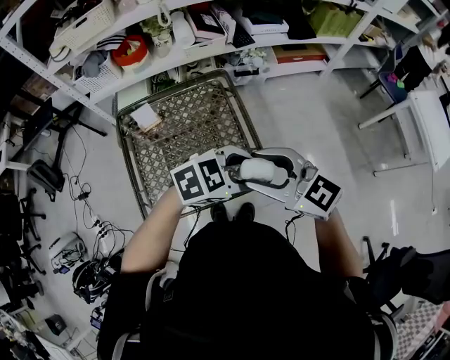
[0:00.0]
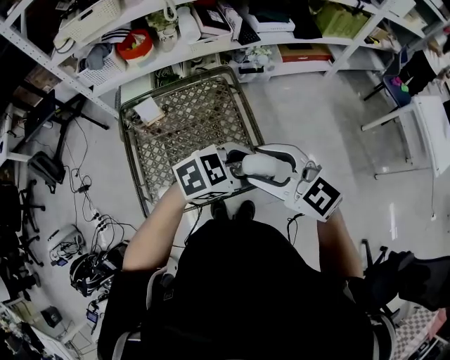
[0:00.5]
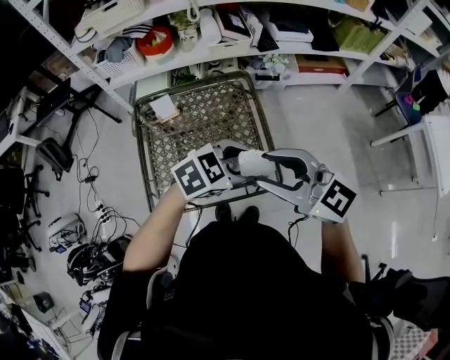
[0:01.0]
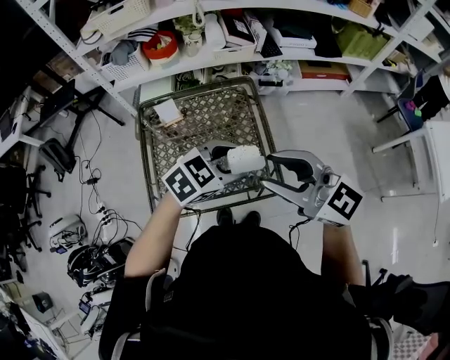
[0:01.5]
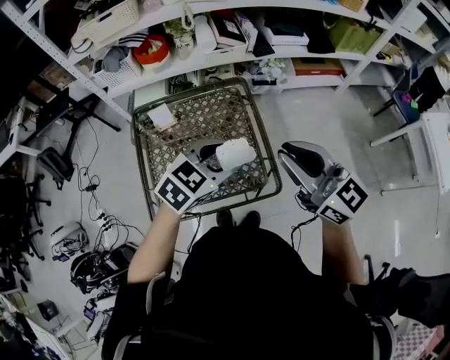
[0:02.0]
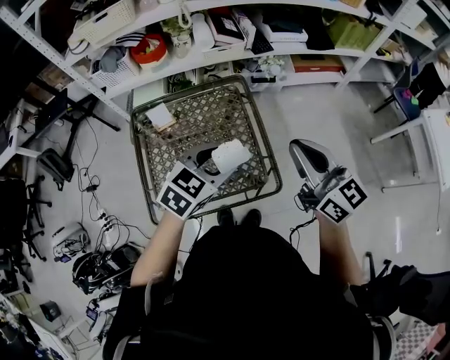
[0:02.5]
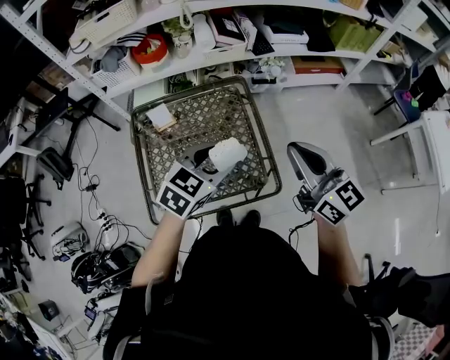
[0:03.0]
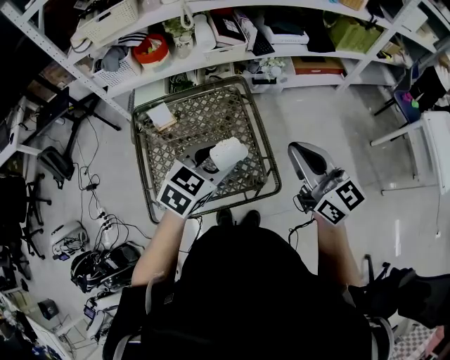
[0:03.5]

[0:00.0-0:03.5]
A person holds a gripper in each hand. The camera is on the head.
0:00.0 to 0:02.0: The right gripper changes place by roughly 10 cm, and closes. Meanwhile the left gripper moves about 10 cm, and rotates roughly 30 degrees.
0:02.0 to 0:03.5: There are only small adjustments of the grippers.

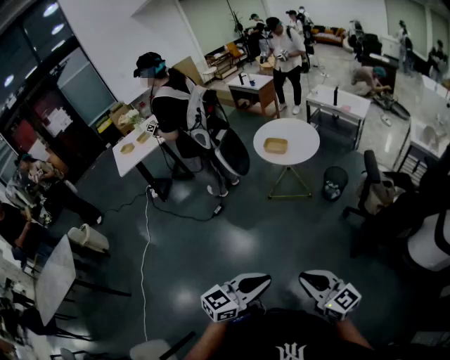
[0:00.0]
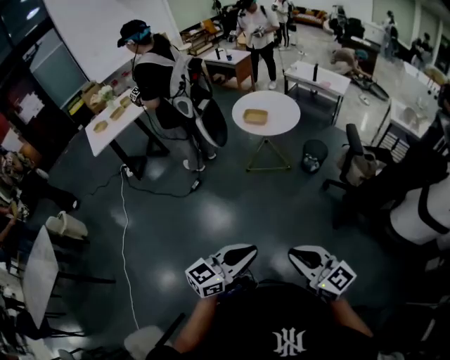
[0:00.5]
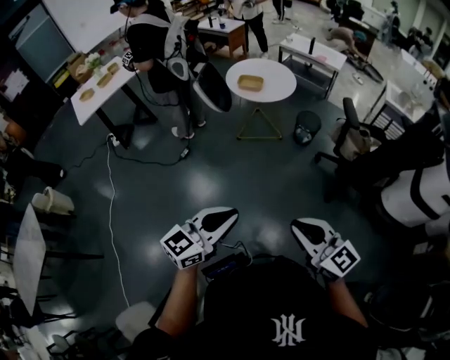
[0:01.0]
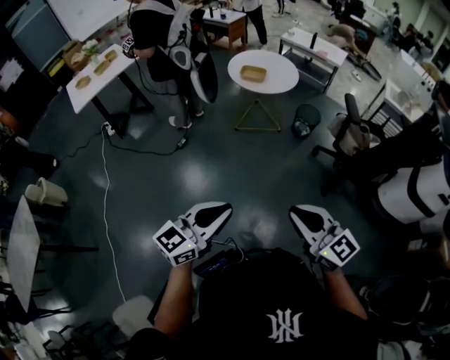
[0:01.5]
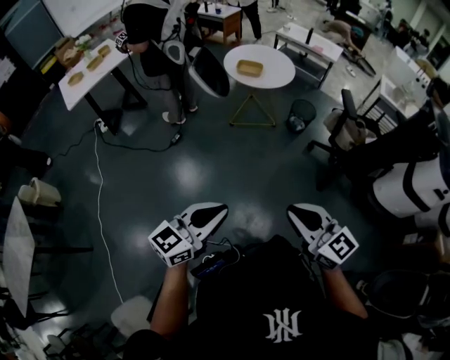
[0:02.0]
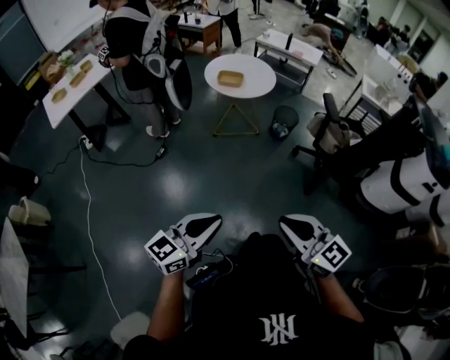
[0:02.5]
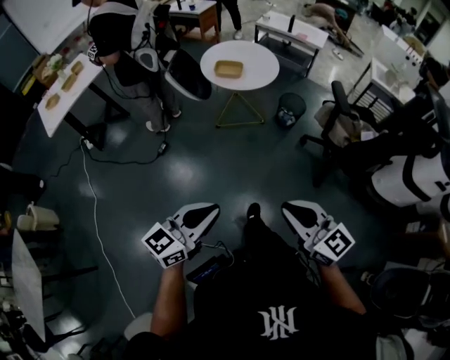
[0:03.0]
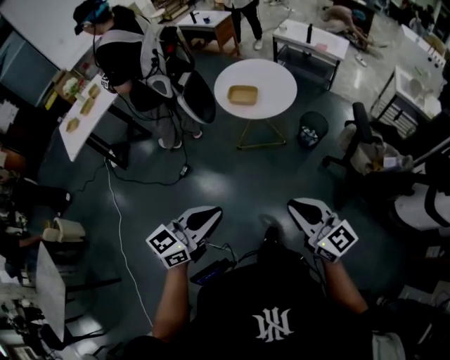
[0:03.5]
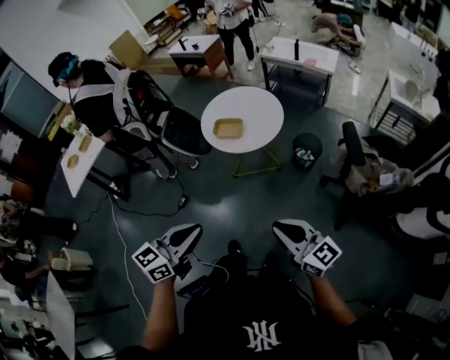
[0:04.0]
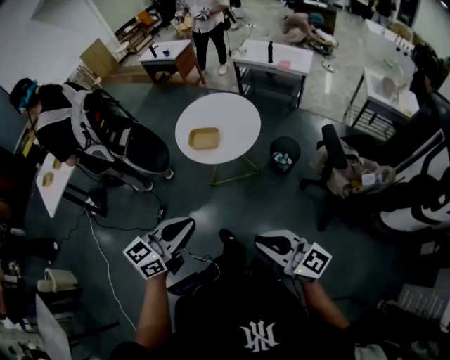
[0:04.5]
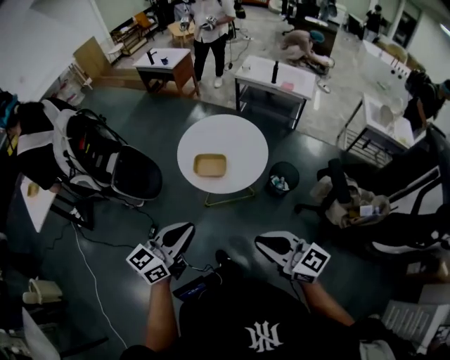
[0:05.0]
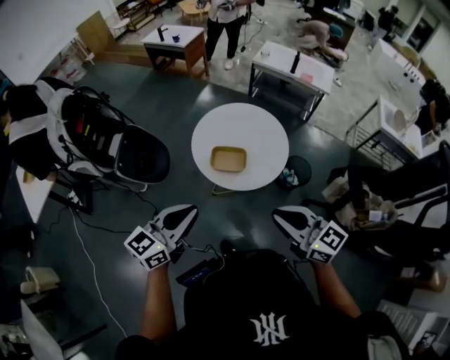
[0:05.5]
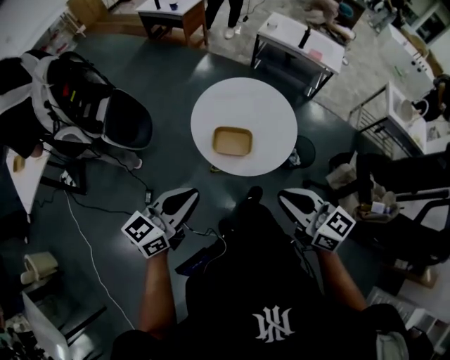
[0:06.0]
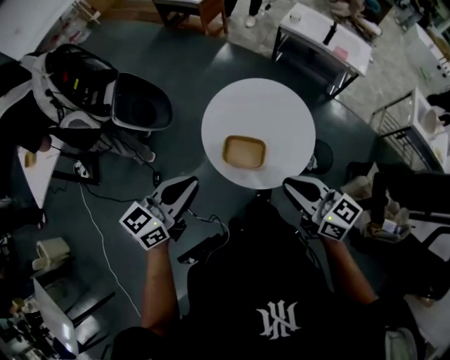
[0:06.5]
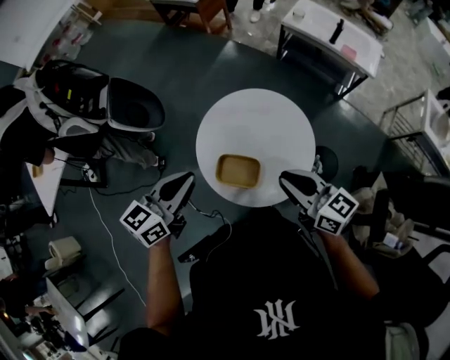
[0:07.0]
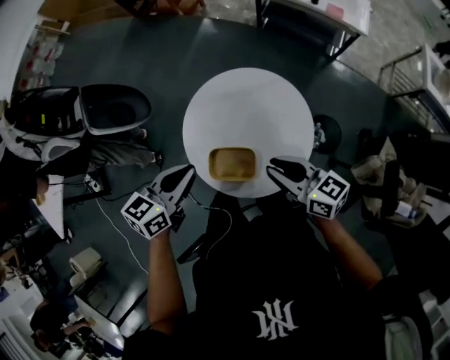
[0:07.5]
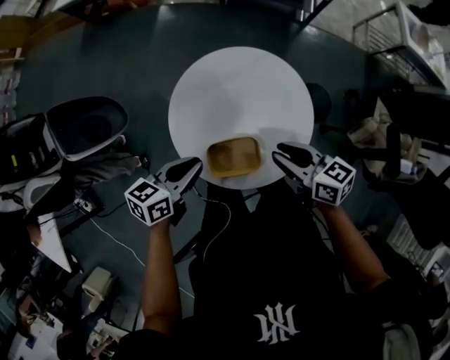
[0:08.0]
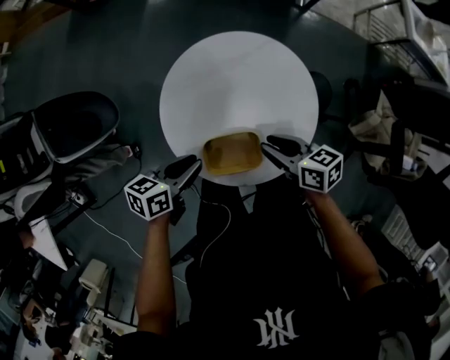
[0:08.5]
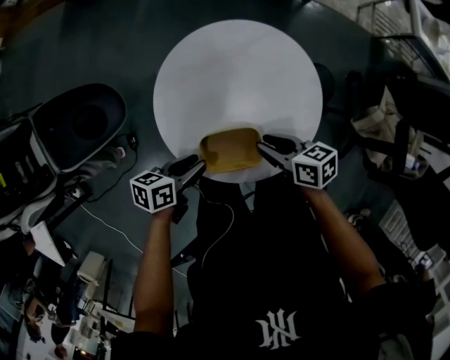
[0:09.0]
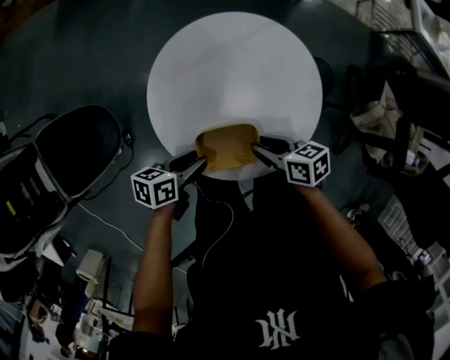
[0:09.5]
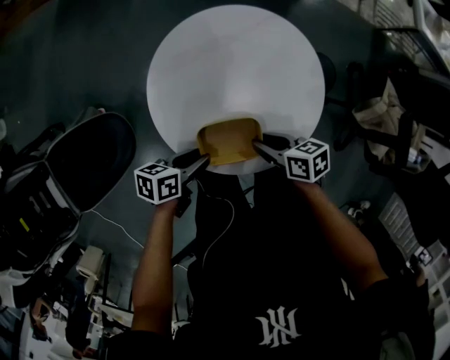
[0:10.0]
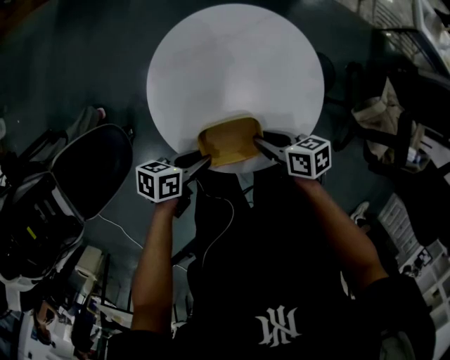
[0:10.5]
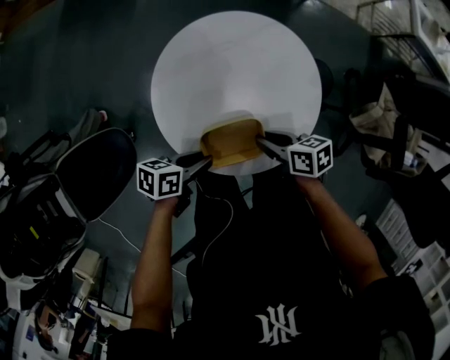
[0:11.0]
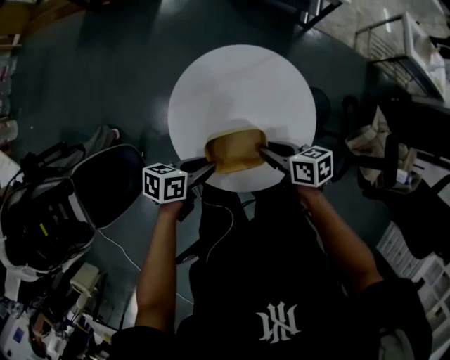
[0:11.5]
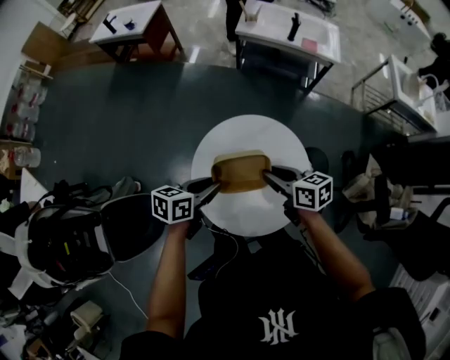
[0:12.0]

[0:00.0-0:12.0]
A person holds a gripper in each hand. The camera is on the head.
0:00.0 to 0:02.0: The right gripper goes approximately 15 cm to the left and upward. Meanwhile the left gripper goes about 20 cm to the left.
0:02.0 to 0:04.0: The two grippers go roughly 35 cm forward.
0:04.0 to 0:06.0: Both grippers travel together forward, some 35 cm.
0:06.0 to 0:08.0: Both grippers move forward and downward, roughly 30 cm. The right gripper swivels approximately 30 degrees. The left gripper swivels about 40 degrees.
0:08.0 to 0:10.0: Both grippers travel together downward, approximately 15 cm. The right gripper rotates approximately 20 degrees. Meanwhile the left gripper changes its angle by approximately 20 degrees, and opens.
0:10.0 to 0:12.0: The left gripper shifts by roughly 25 cm. The right gripper changes place by roughly 25 cm.

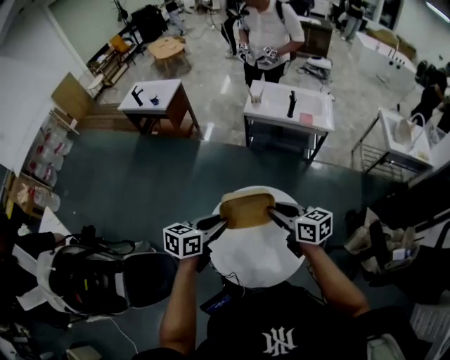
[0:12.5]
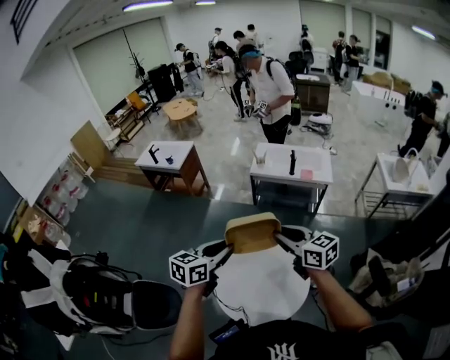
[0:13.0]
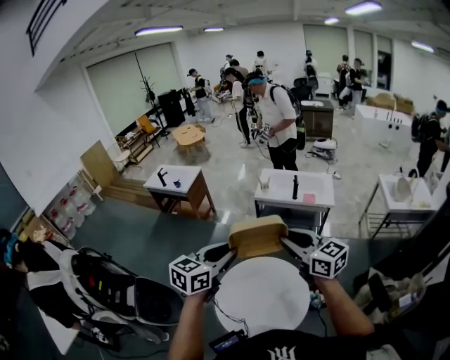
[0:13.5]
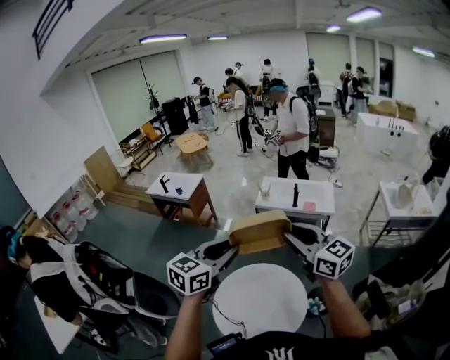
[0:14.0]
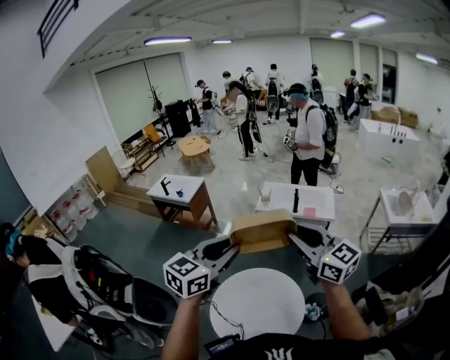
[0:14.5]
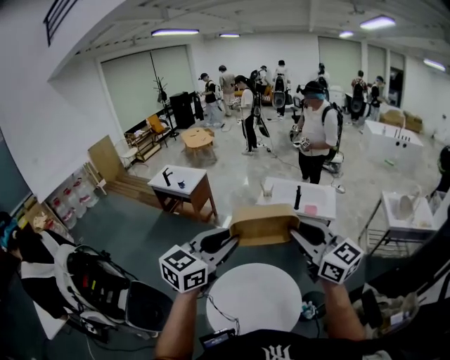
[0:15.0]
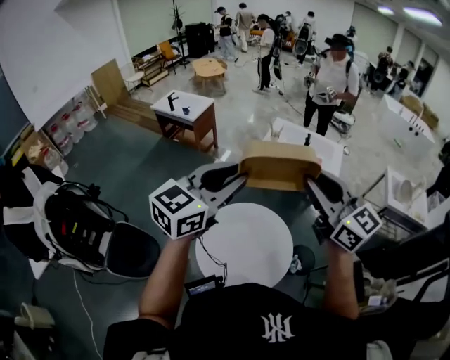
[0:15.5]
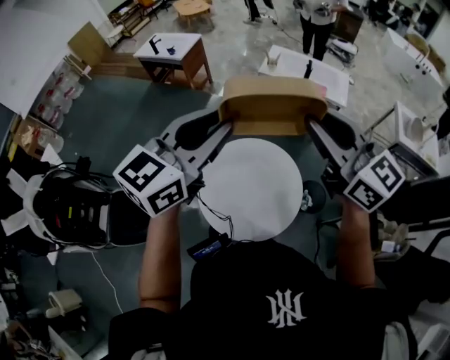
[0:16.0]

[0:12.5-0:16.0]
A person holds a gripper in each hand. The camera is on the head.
0:12.5 to 0:14.5: The two grippers go about 30 cm upward. The right gripper changes its angle by approximately 40 degrees. Meanwhile the left gripper turns by about 40 degrees.
0:14.5 to 0:16.0: The grippers move only a little.

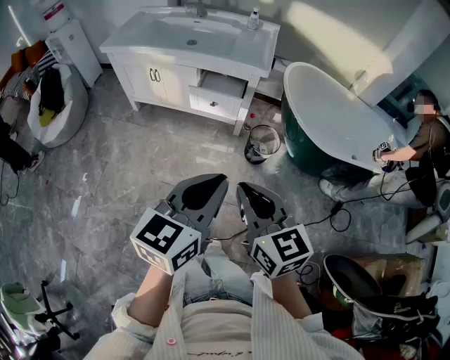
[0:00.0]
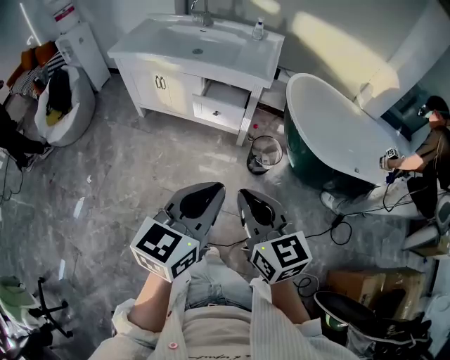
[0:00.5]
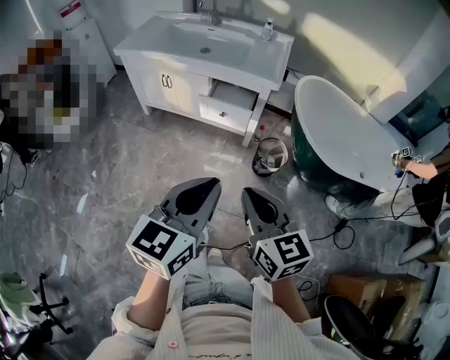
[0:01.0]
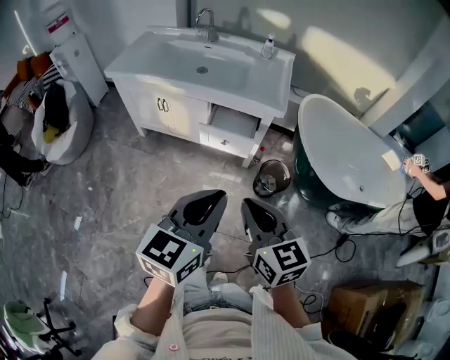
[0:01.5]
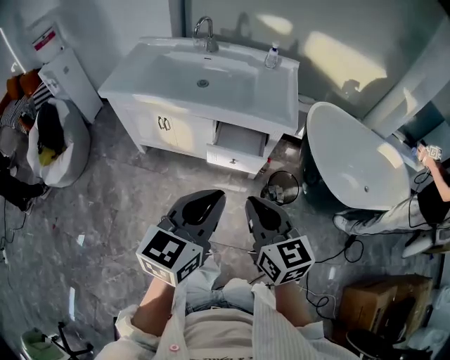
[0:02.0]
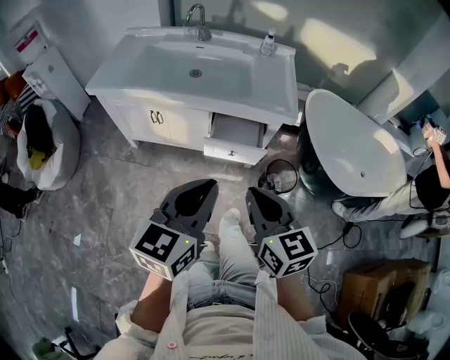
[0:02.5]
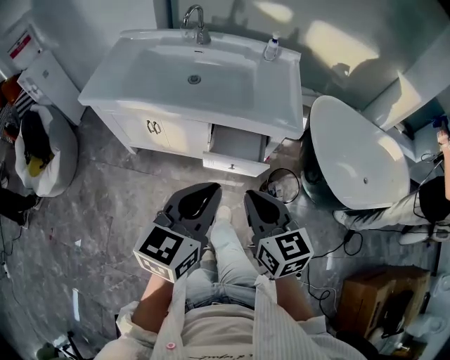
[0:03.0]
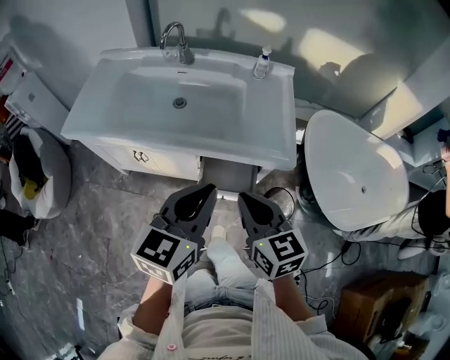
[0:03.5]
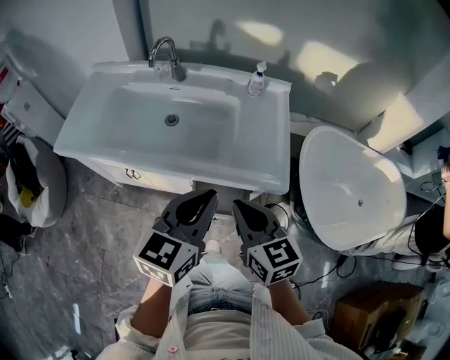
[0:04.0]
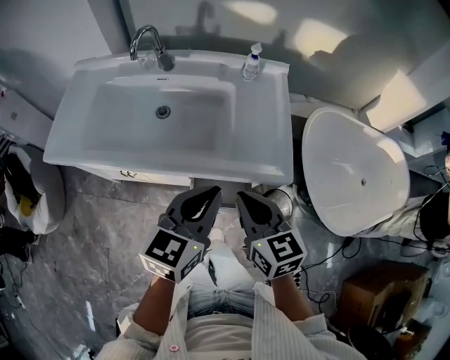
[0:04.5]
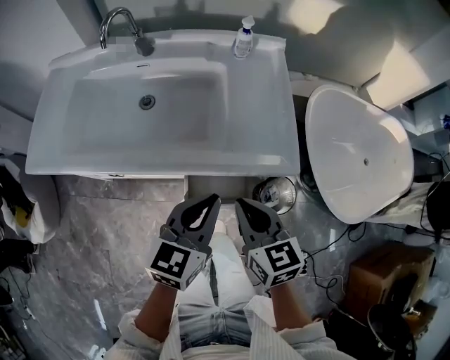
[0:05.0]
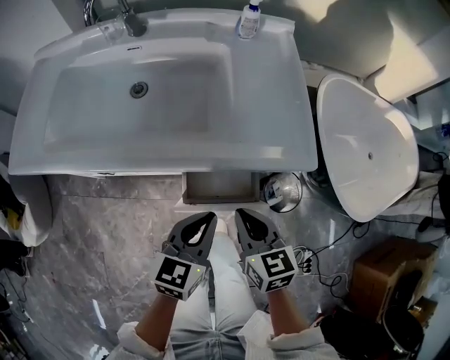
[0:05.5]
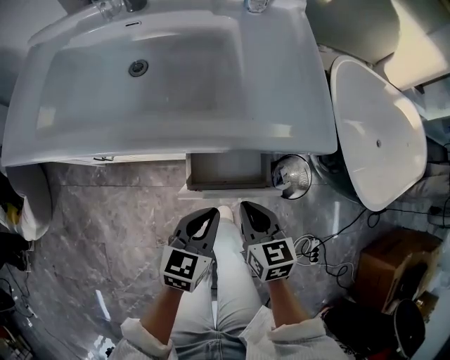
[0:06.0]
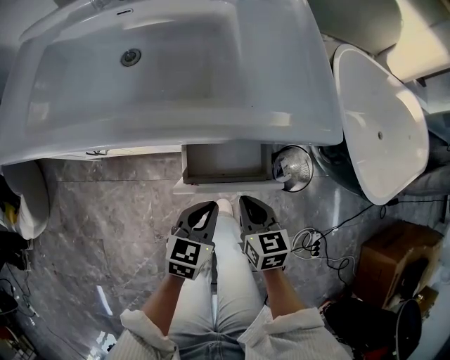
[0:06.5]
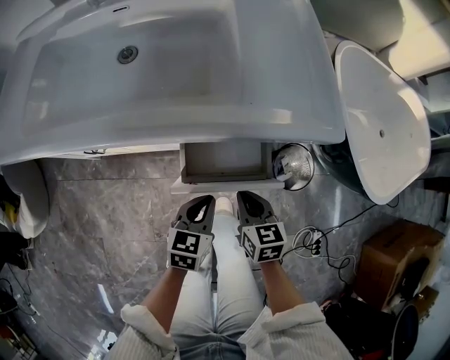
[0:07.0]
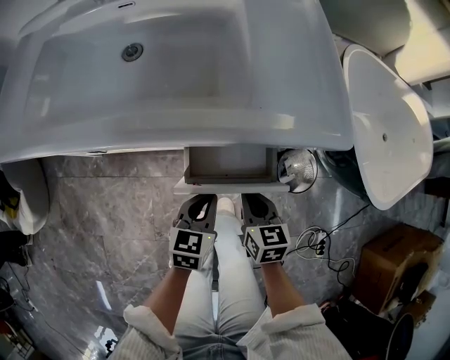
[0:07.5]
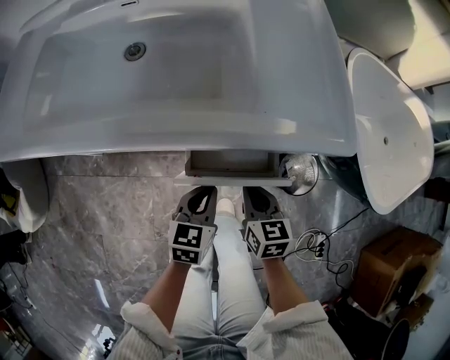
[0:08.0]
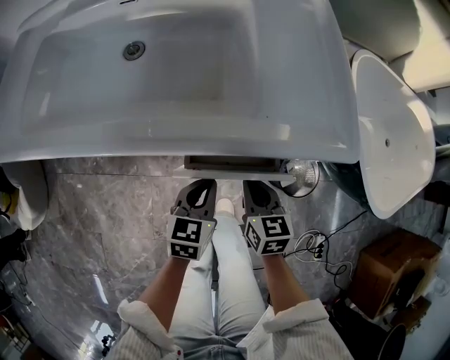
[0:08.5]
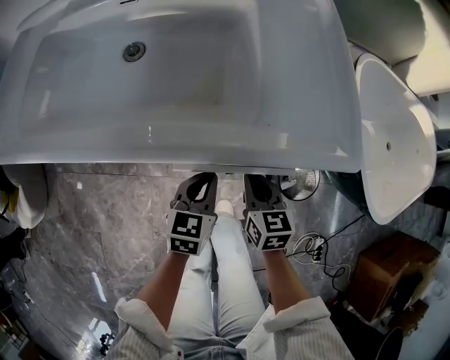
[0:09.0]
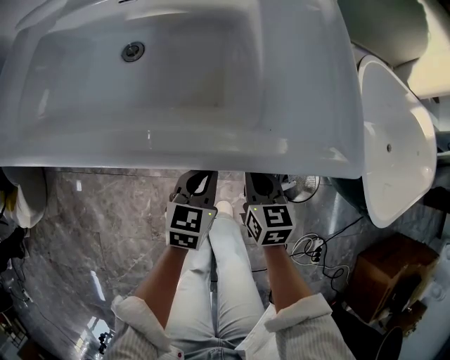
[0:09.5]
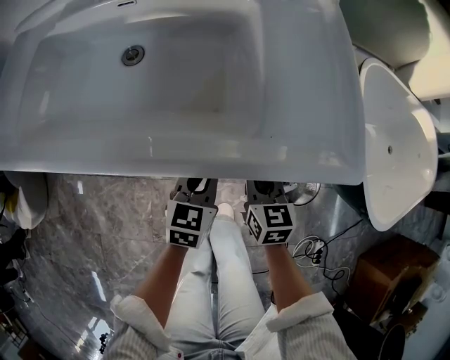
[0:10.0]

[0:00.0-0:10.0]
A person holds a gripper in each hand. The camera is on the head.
0:00.0 to 0:02.0: The right gripper heads forward, covering approximately 25 cm, while the left gripper travels forward and to the left by roughly 25 cm.
0:02.0 to 0:04.0: Both grippers move forward, roughly 30 cm.
0:04.0 to 0:06.0: The two grippers go some 30 cm downward. The right gripper turns by about 20 degrees; the left gripper rotates about 20 degrees.
0:06.0 to 0:08.0: The grippers both shift downward by about 10 cm.
0:08.0 to 0:10.0: The two grippers go roughly 10 cm forward.
